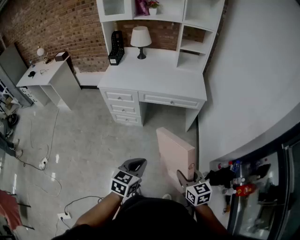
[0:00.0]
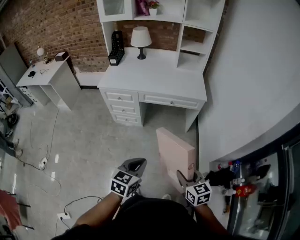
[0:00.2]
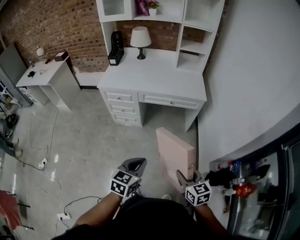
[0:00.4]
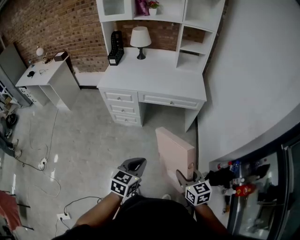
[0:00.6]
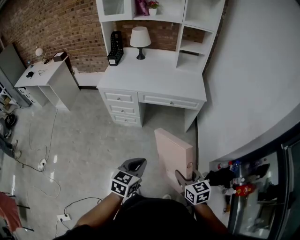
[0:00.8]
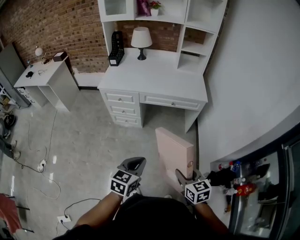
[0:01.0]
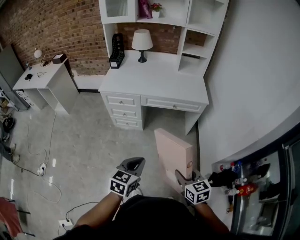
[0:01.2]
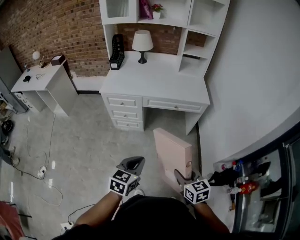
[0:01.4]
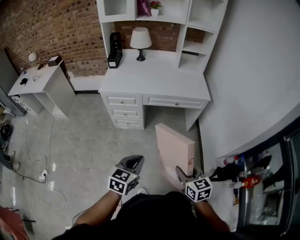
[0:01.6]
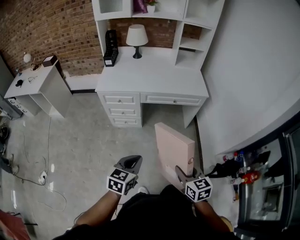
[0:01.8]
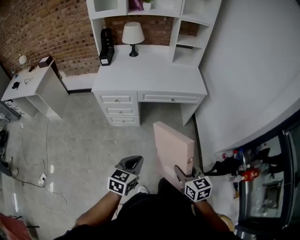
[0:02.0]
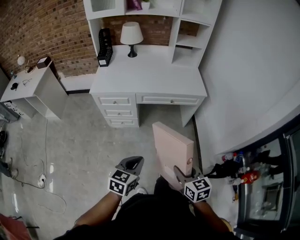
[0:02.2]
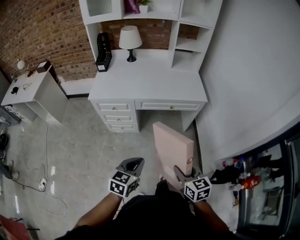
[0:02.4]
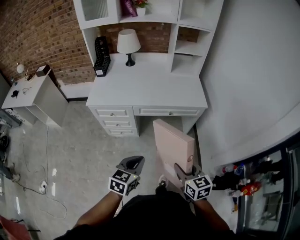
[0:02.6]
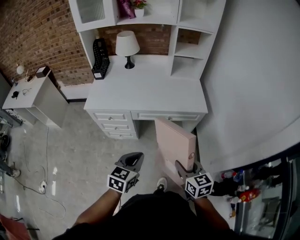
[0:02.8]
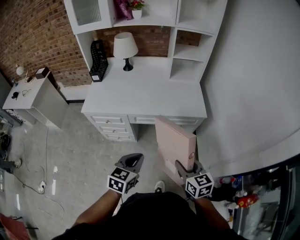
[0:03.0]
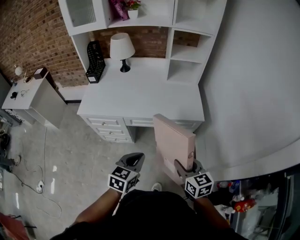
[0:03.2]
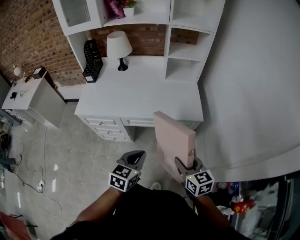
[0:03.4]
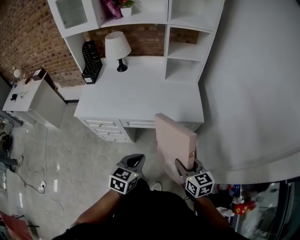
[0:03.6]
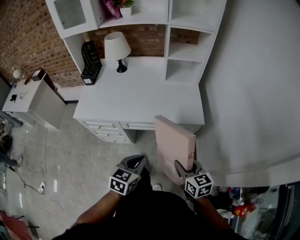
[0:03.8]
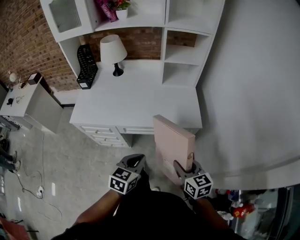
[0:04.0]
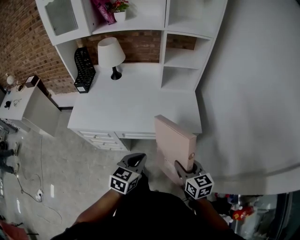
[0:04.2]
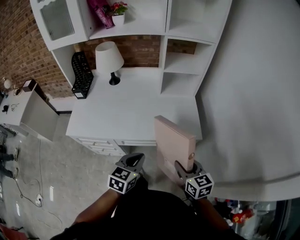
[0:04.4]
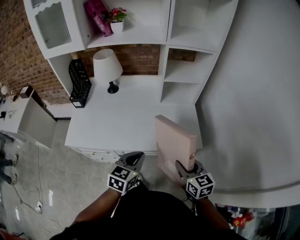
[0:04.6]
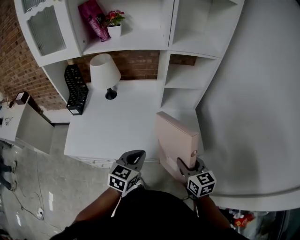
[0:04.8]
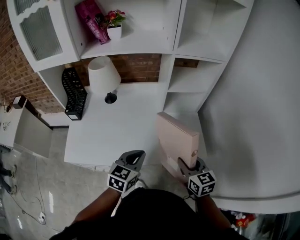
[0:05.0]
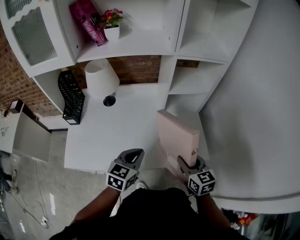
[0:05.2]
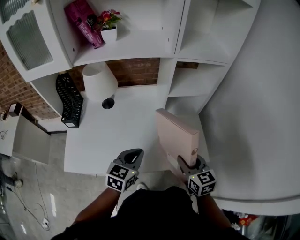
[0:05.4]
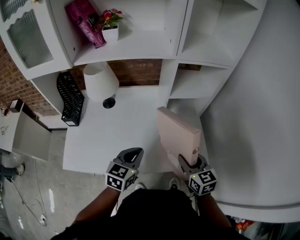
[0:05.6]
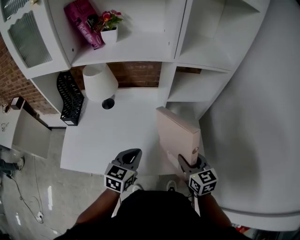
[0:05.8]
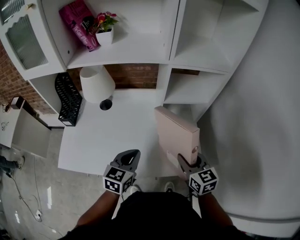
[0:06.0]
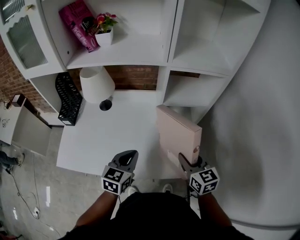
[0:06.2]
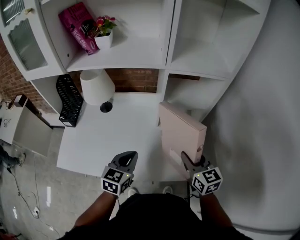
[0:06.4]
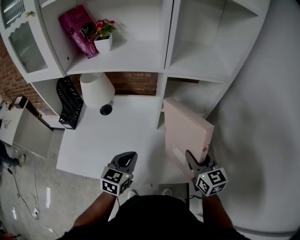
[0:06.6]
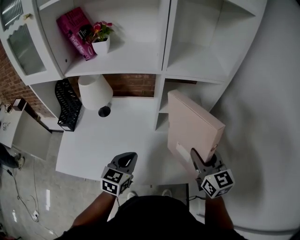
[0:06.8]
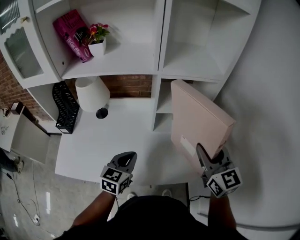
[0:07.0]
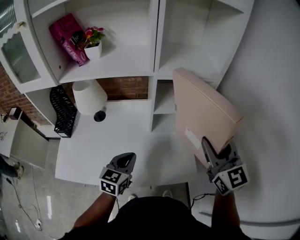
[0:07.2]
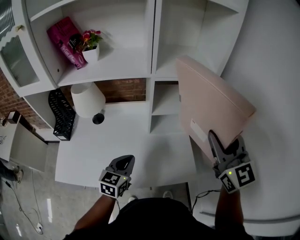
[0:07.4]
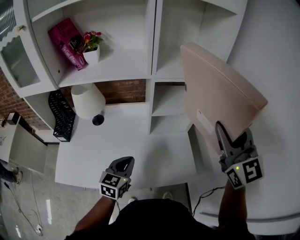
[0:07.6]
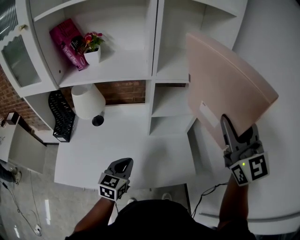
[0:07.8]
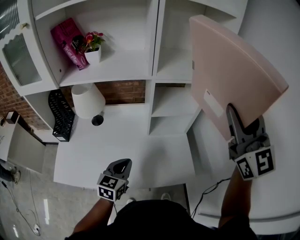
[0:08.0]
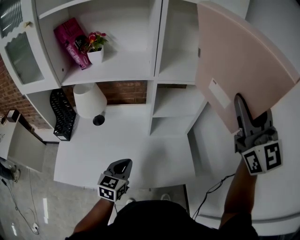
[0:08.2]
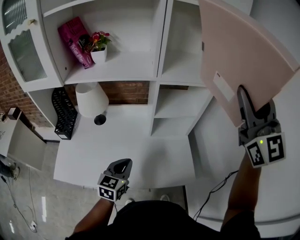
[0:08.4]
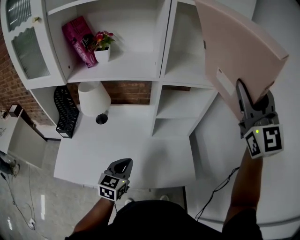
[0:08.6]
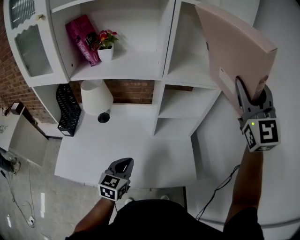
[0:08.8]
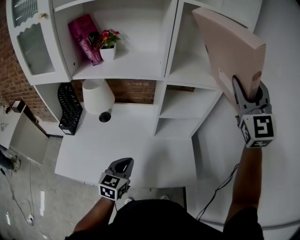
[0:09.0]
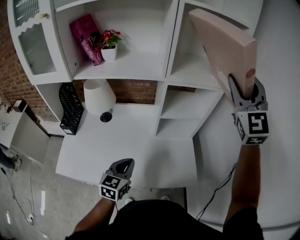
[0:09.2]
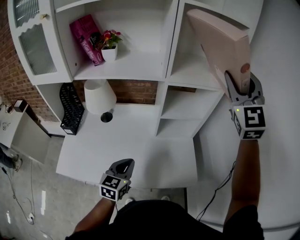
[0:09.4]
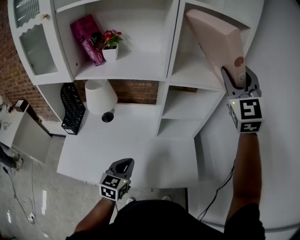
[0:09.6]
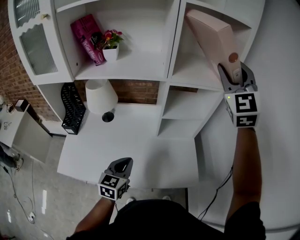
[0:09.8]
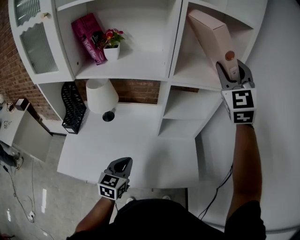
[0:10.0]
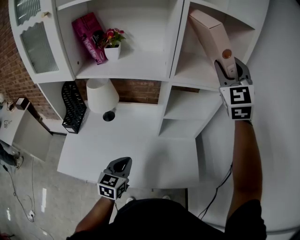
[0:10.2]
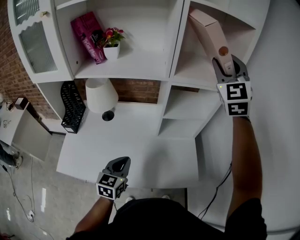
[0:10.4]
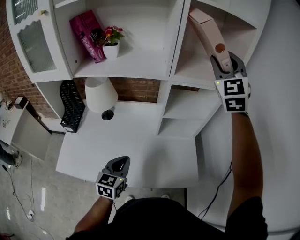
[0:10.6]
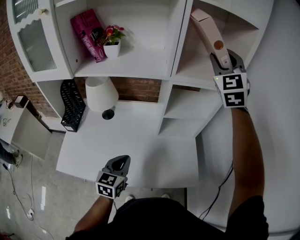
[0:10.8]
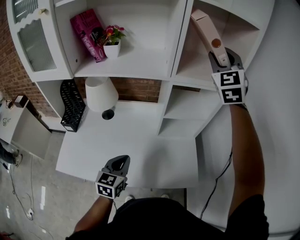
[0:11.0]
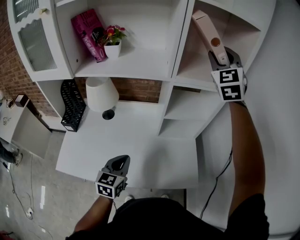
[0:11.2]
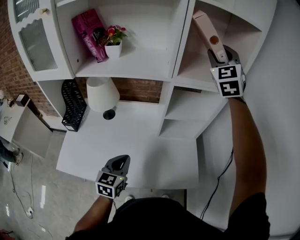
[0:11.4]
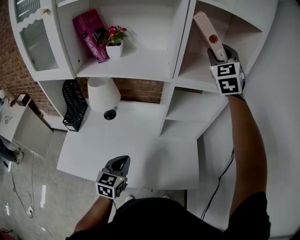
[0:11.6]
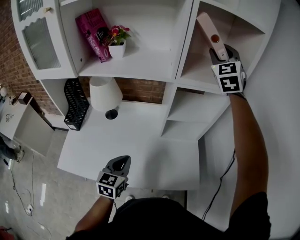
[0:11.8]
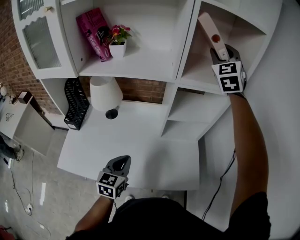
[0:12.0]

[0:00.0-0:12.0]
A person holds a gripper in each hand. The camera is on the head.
0.0 to 1.6 s: The two grippers go approximately 10 cm to the left.
1.6 to 3.0 s: The grippers both shift forward by roughly 25 cm.
3.0 to 4.4 s: Both grippers move forward, about 20 cm.
4.4 to 6.0 s: The grippers both shift forward by roughly 25 cm.
6.0 to 7.6 s: The right gripper is displaced upward by about 30 cm, and turns by about 40 degrees.
7.6 to 9.0 s: The right gripper goes roughly 15 cm upward and forward, and swivels approximately 20 degrees.
9.0 to 10.4 s: The right gripper is displaced forward and to the left by about 10 cm.
10.4 to 12.0 s: The right gripper is displaced forward by about 10 cm.

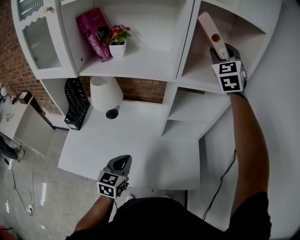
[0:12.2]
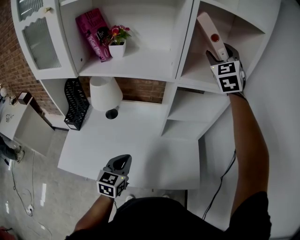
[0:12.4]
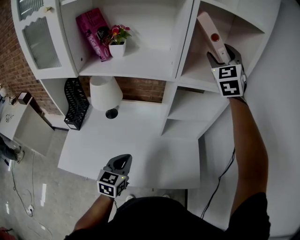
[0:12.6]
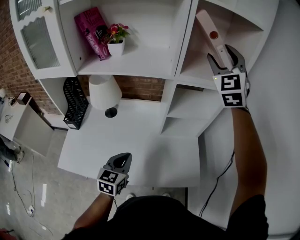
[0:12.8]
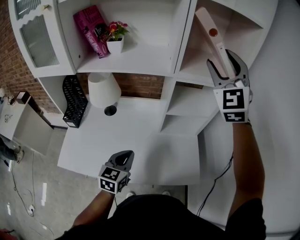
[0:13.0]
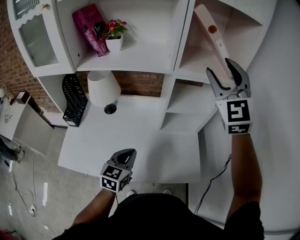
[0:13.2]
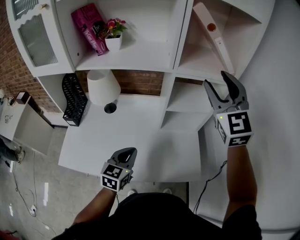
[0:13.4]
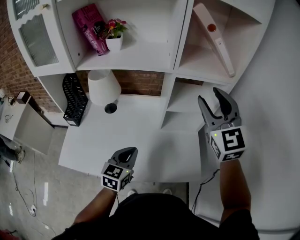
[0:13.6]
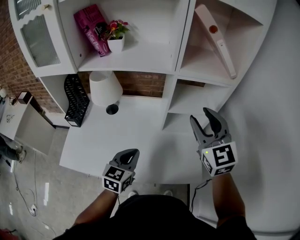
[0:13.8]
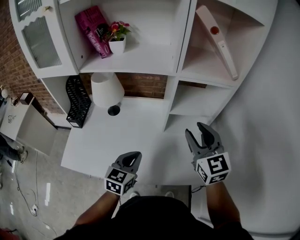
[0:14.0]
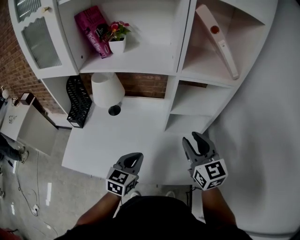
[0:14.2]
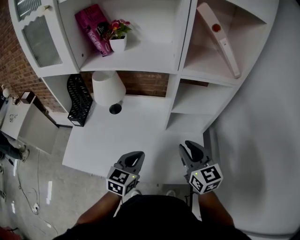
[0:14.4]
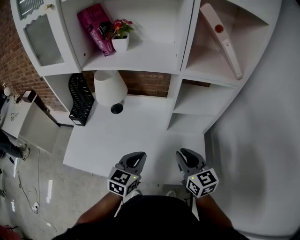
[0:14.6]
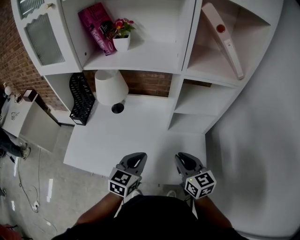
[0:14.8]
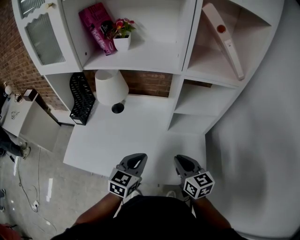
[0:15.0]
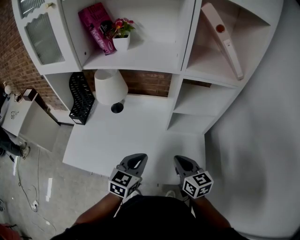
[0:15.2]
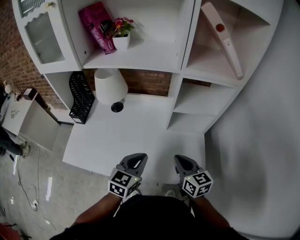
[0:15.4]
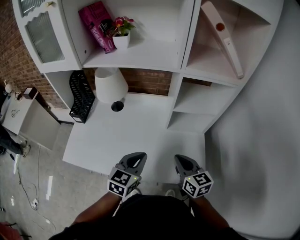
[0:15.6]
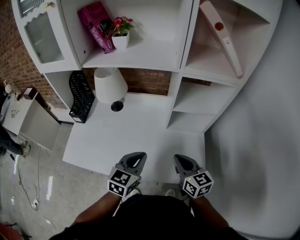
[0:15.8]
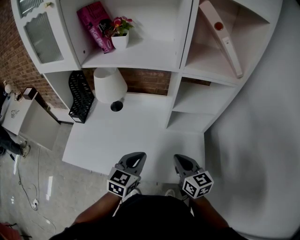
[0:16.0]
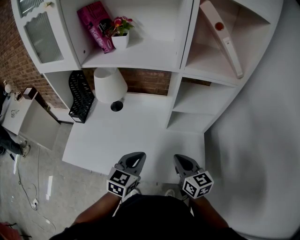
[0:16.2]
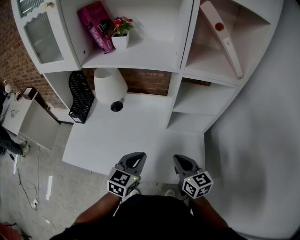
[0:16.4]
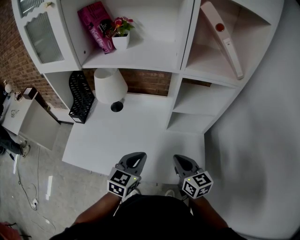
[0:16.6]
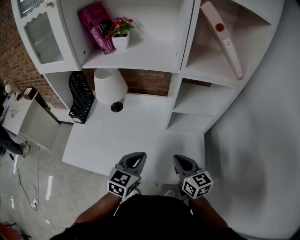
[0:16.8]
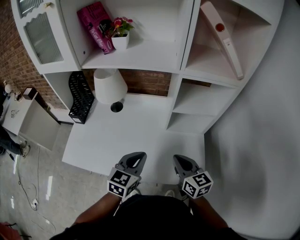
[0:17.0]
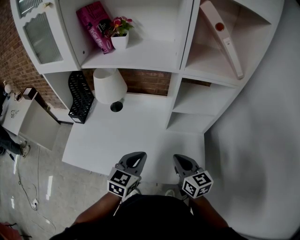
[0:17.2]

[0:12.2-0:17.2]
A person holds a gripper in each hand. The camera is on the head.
12.2 to 13.8 s: The right gripper moves backward and downward, roughly 30 cm, and turns by some 30 degrees.
13.8 to 15.6 s: The right gripper shifts some 20 cm downward, changes its angle by roughly 40 degrees, and closes.
15.6 to 17.2 s: Neither gripper changes place.

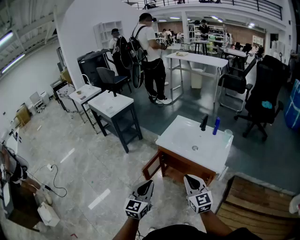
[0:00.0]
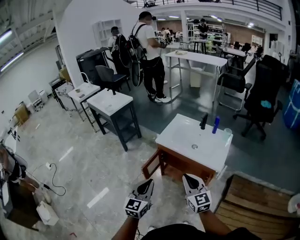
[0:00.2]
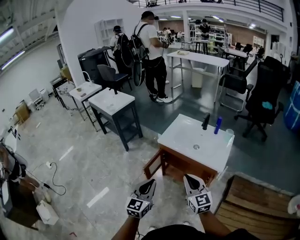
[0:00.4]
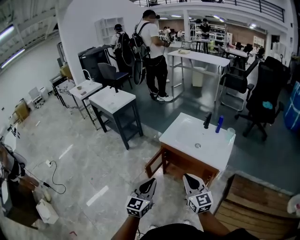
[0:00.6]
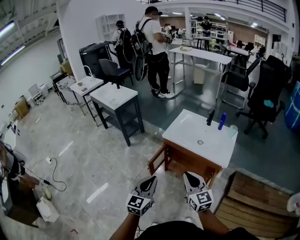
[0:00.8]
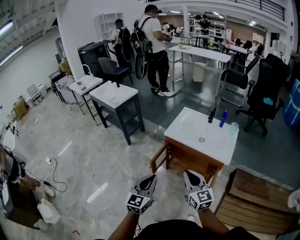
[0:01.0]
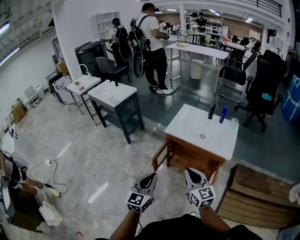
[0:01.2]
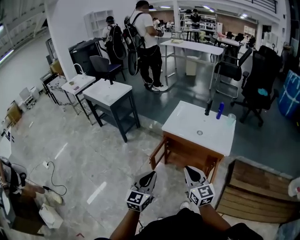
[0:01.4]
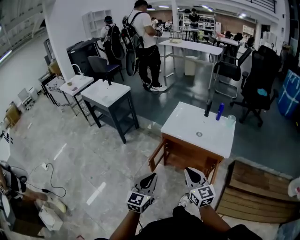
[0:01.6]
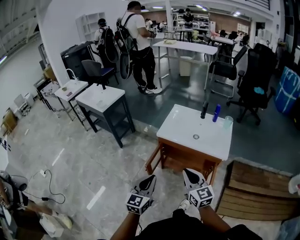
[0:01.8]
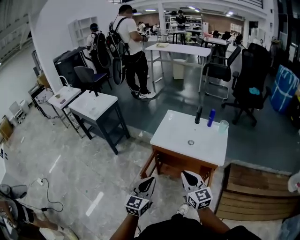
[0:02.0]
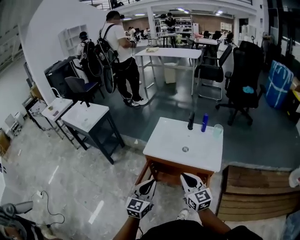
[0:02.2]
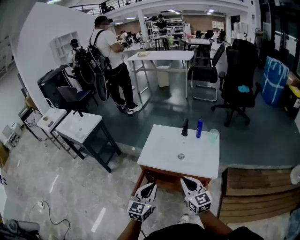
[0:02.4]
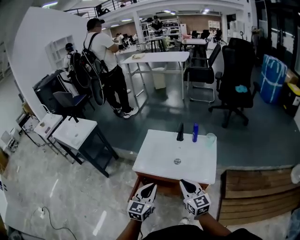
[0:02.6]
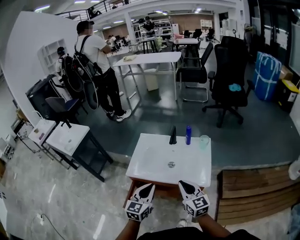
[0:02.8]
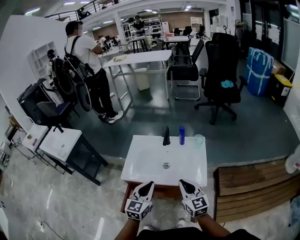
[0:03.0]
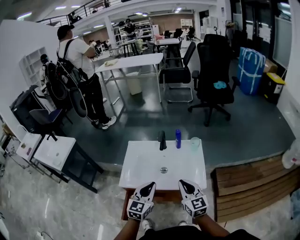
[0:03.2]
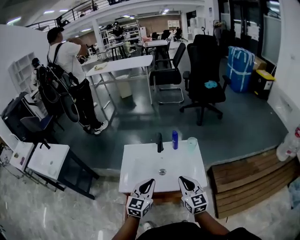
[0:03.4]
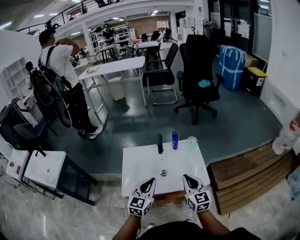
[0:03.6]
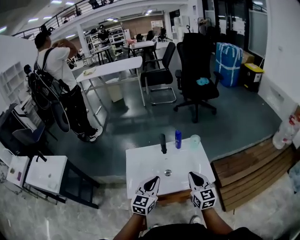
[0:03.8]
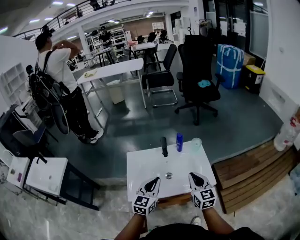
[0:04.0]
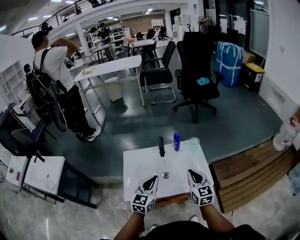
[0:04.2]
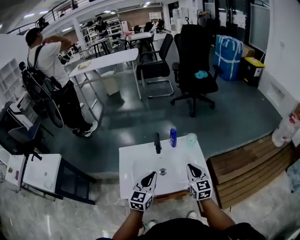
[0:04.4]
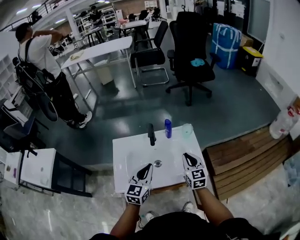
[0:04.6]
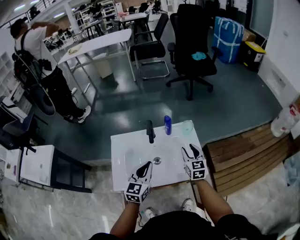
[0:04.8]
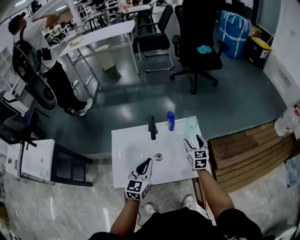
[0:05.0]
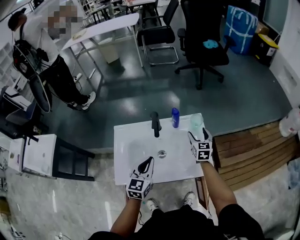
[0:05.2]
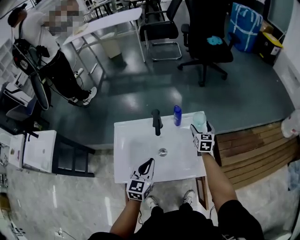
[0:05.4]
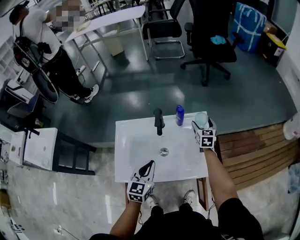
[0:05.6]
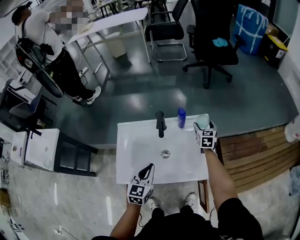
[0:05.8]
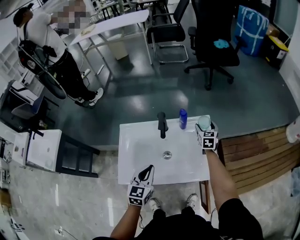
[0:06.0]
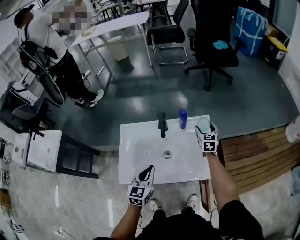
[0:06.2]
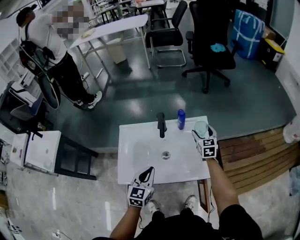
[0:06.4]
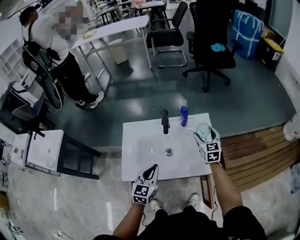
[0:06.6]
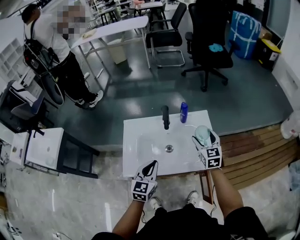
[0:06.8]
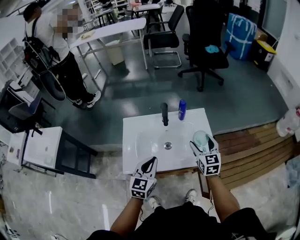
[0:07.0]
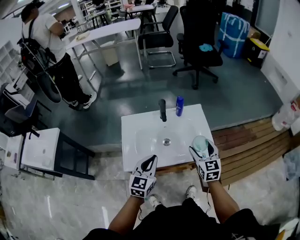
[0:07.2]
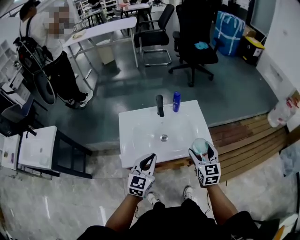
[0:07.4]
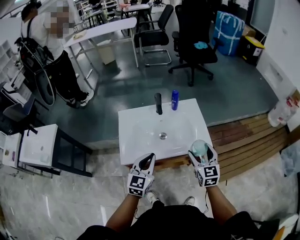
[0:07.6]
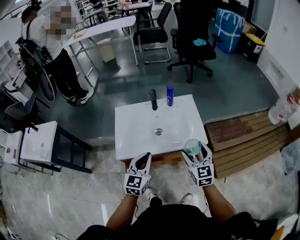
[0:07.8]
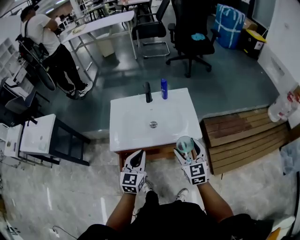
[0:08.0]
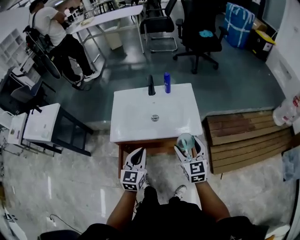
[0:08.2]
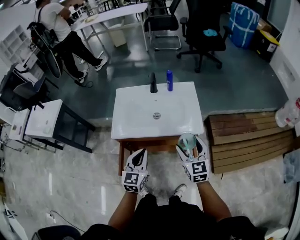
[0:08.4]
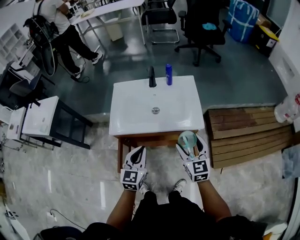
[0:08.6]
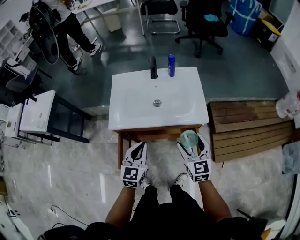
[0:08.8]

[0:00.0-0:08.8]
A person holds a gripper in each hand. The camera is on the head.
0.0 to 1.4 s: The grippers both shift to the left by about 10 cm.
1.4 to 3.0 s: Both grippers travel together forward and to the right, approximately 35 cm. The left gripper swivels approximately 20 degrees.
3.0 to 4.4 s: The grippers both shift forward by approximately 10 cm. The right gripper rotates approximately 30 degrees.
4.4 to 5.8 s: The right gripper is displaced forward and downward by approximately 30 cm, and opens. Meanwhile the left gripper travels downward by some 10 cm.
5.8 to 7.4 s: The left gripper moves backward and upward, roughly 10 cm. Meanwhile the right gripper moves backward and upward, approximately 35 cm.
7.4 to 8.8 s: Both grippers move backward and downward, some 10 cm.
